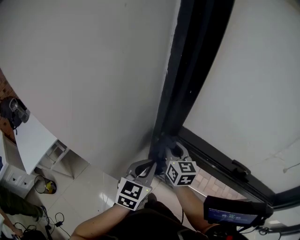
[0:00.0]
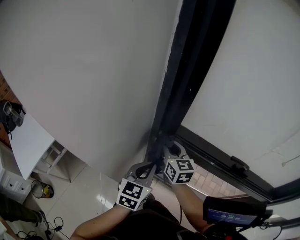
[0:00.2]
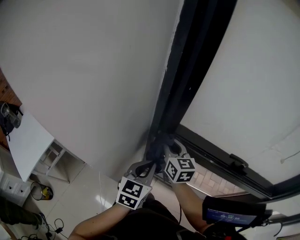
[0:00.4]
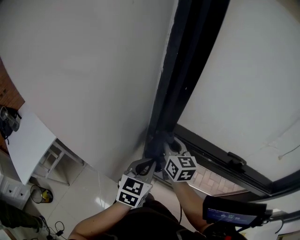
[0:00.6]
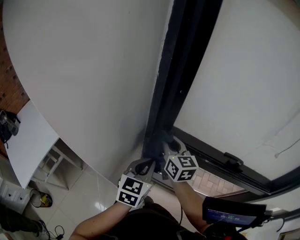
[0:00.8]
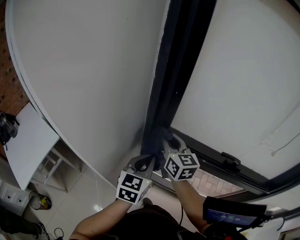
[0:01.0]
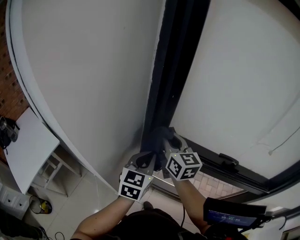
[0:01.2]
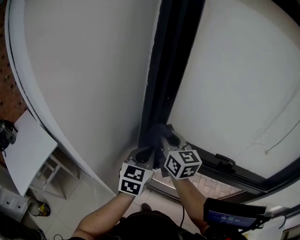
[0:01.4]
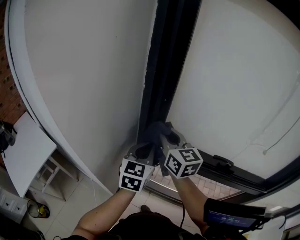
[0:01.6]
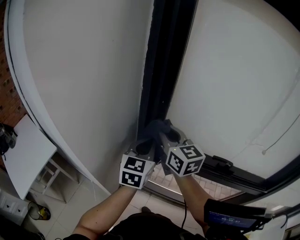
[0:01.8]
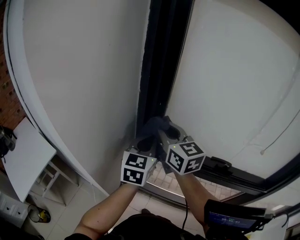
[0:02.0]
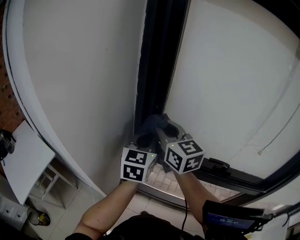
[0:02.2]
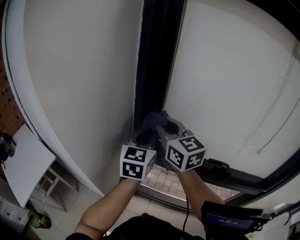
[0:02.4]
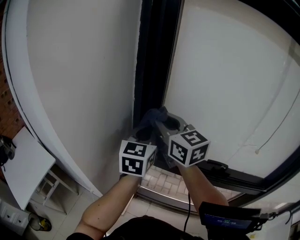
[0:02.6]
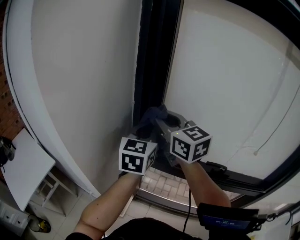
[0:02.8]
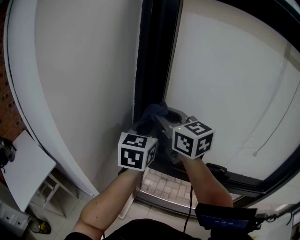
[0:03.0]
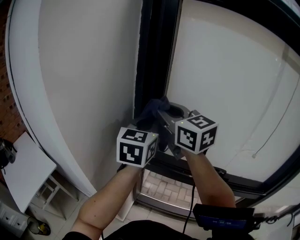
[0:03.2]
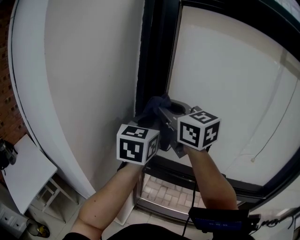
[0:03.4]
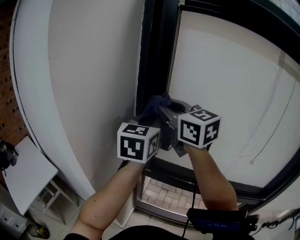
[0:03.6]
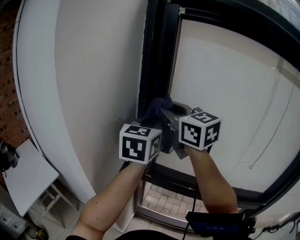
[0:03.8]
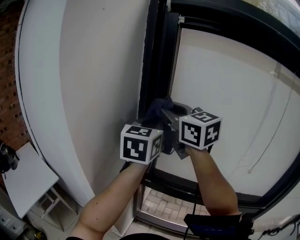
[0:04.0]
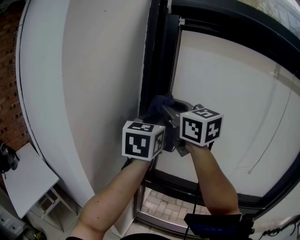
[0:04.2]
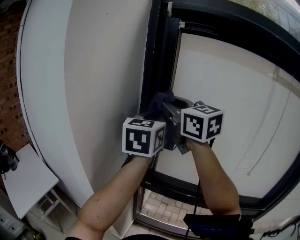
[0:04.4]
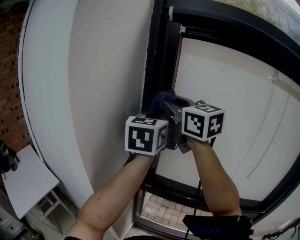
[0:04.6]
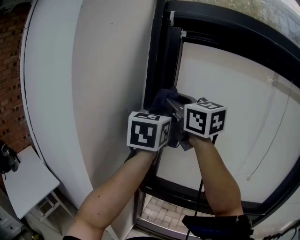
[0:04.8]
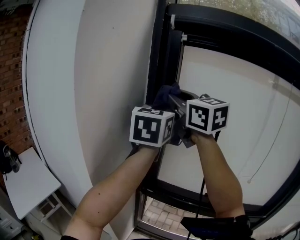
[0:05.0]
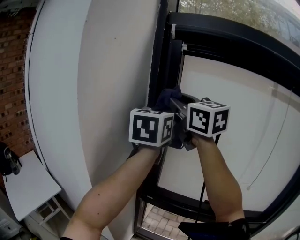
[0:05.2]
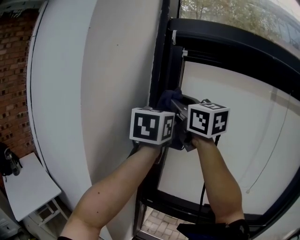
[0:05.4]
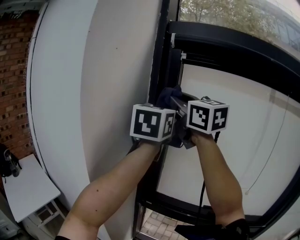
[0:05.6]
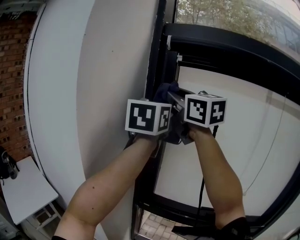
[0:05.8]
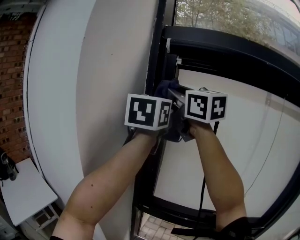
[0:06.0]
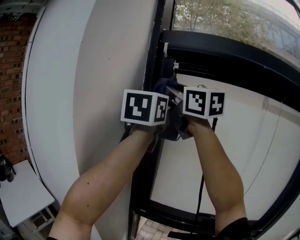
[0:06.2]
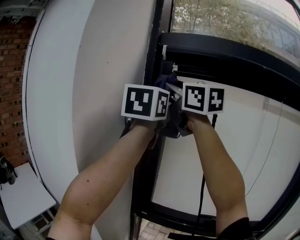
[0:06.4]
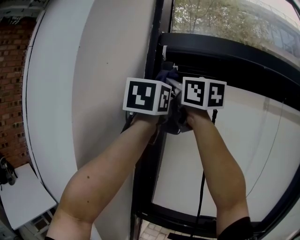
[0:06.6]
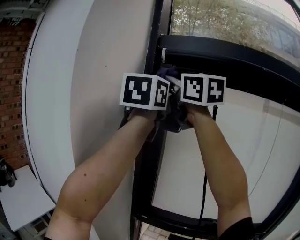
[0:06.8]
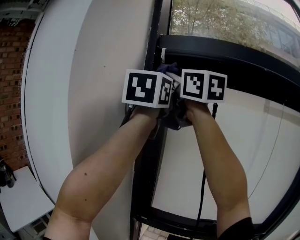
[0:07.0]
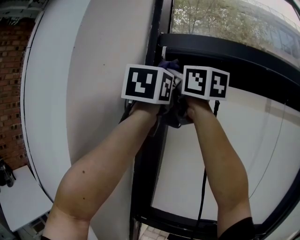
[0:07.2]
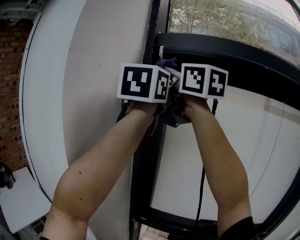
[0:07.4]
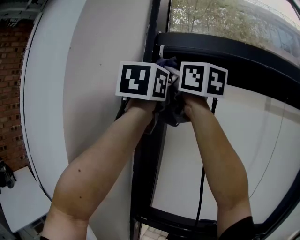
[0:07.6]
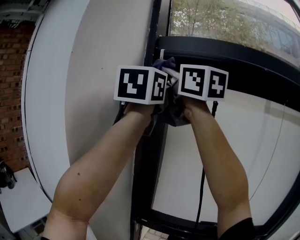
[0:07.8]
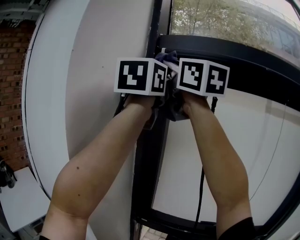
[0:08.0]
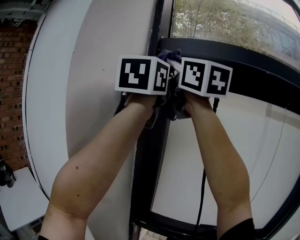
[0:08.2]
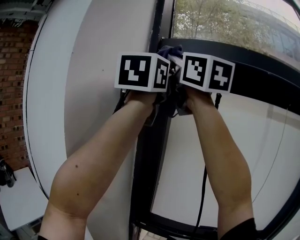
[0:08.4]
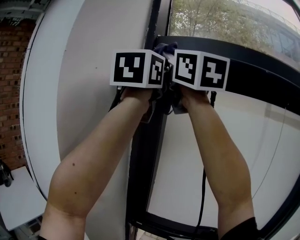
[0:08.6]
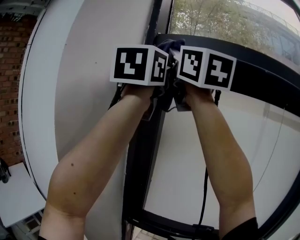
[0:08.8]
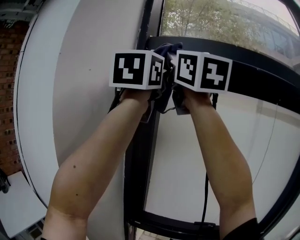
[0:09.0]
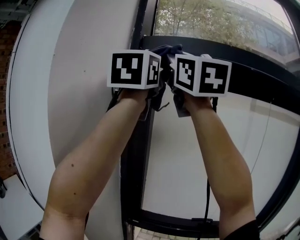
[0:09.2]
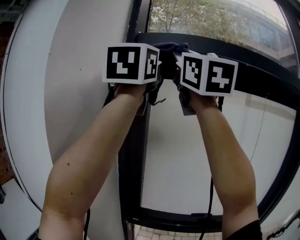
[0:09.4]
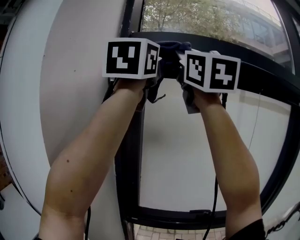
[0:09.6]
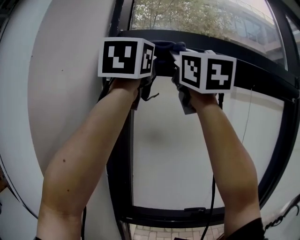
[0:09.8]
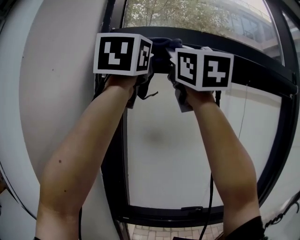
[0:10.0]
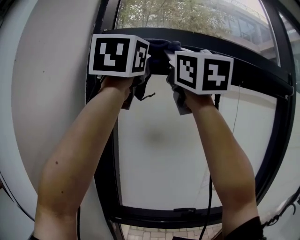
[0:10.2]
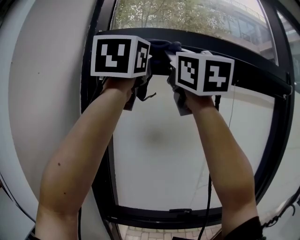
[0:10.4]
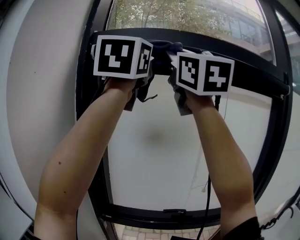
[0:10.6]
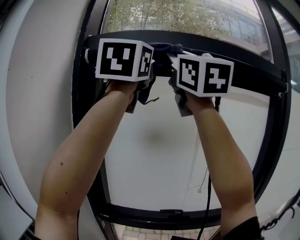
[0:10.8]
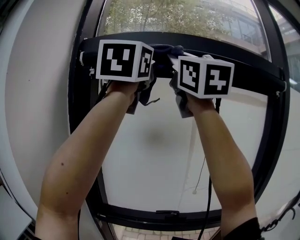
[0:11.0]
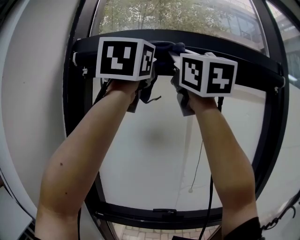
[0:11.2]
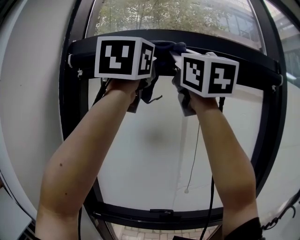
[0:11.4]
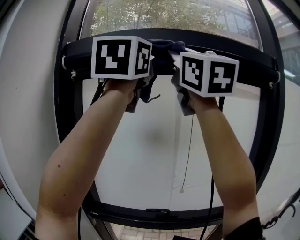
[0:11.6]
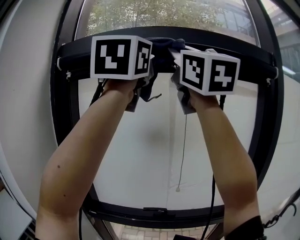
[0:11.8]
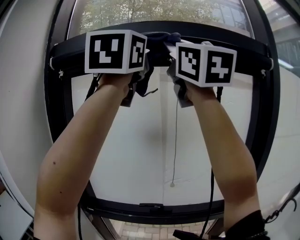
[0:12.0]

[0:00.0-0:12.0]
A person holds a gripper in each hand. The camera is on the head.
0:00.0 to 0:01.6: The right gripper travels upward by about 15 cm; the left gripper travels upward and forward by some 10 cm.
0:01.6 to 0:03.0: Both grippers travel together upward, some 15 cm.
0:03.0 to 0:04.4: Both grippers travel together upward, some 15 cm.
0:04.4 to 0:06.0: Both grippers move upward, some 15 cm.
0:06.0 to 0:07.6: Both grippers travel together upward, about 10 cm.
0:07.6 to 0:09.0: Both grippers travel together upward, approximately 5 cm. The right gripper swivels about 20 degrees.
0:09.0 to 0:10.4: Both grippers move to the right, about 15 cm.
0:10.4 to 0:12.0: Both grippers travel together to the right, some 20 cm.

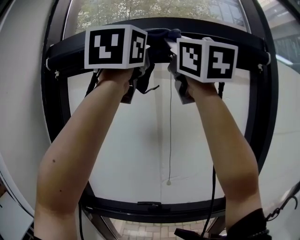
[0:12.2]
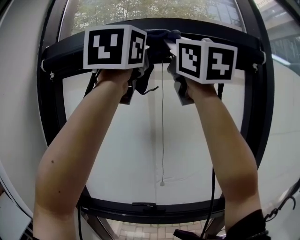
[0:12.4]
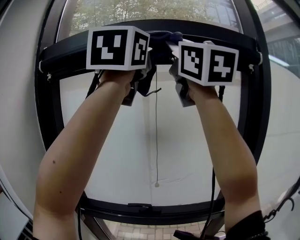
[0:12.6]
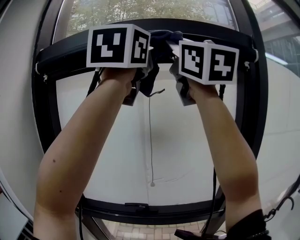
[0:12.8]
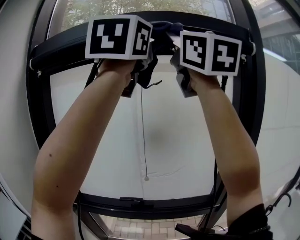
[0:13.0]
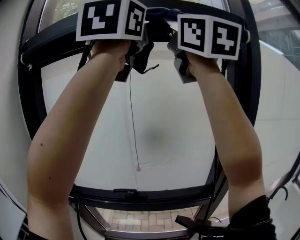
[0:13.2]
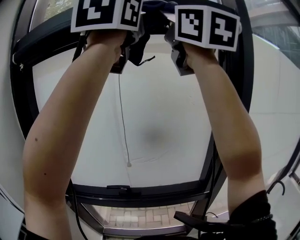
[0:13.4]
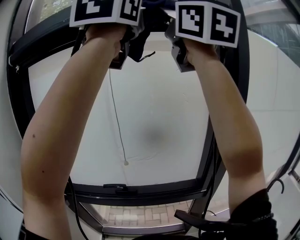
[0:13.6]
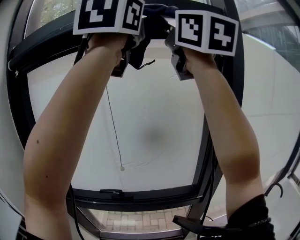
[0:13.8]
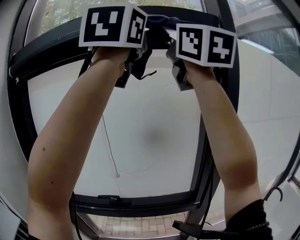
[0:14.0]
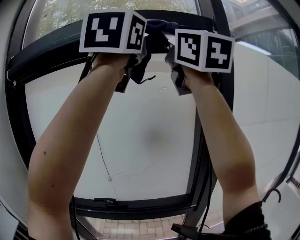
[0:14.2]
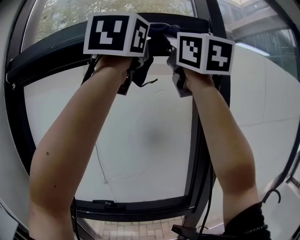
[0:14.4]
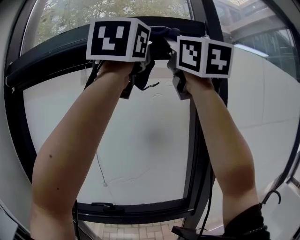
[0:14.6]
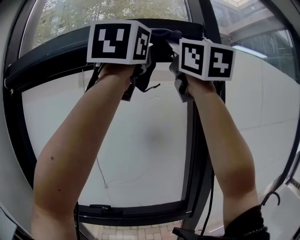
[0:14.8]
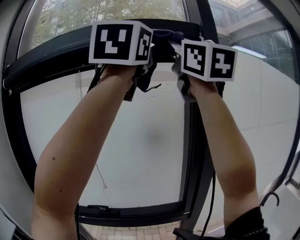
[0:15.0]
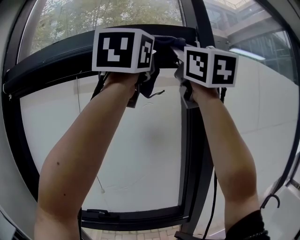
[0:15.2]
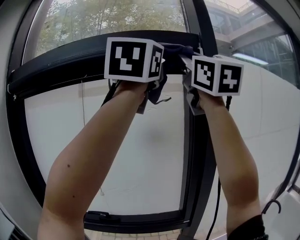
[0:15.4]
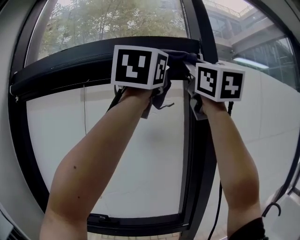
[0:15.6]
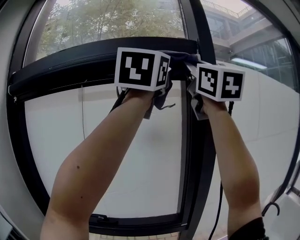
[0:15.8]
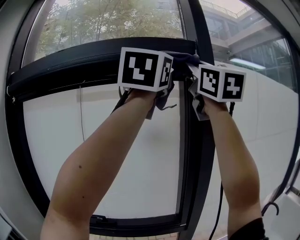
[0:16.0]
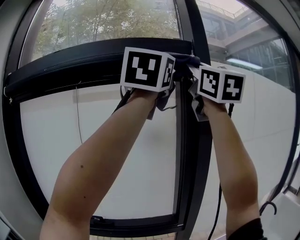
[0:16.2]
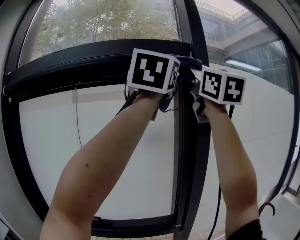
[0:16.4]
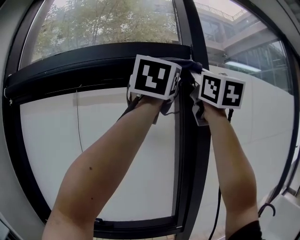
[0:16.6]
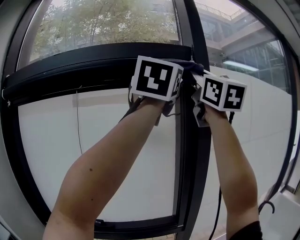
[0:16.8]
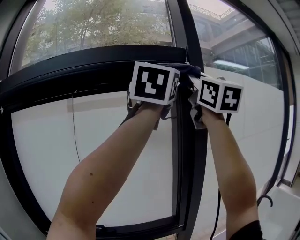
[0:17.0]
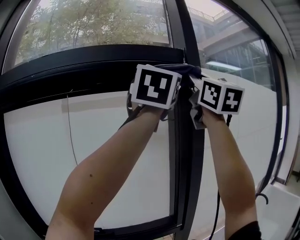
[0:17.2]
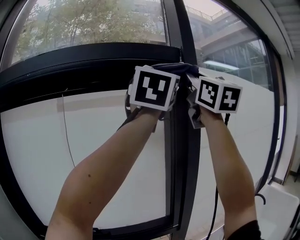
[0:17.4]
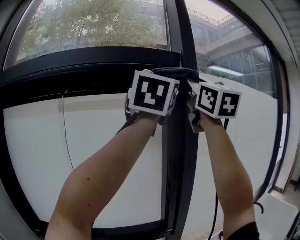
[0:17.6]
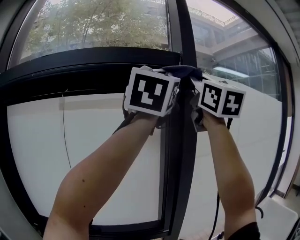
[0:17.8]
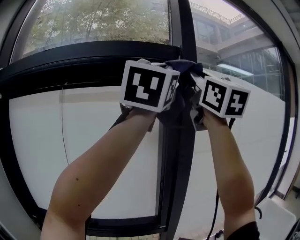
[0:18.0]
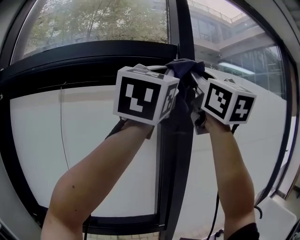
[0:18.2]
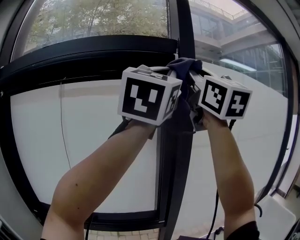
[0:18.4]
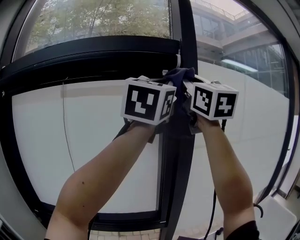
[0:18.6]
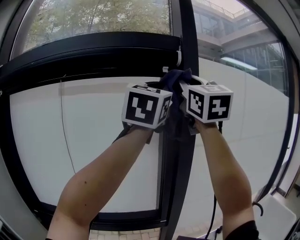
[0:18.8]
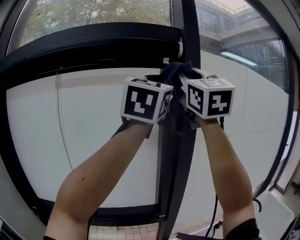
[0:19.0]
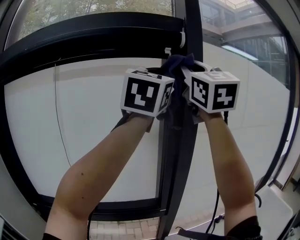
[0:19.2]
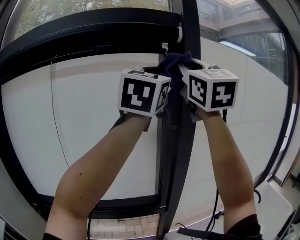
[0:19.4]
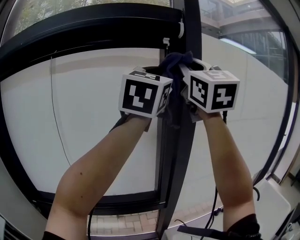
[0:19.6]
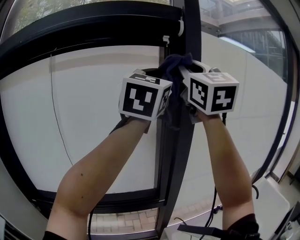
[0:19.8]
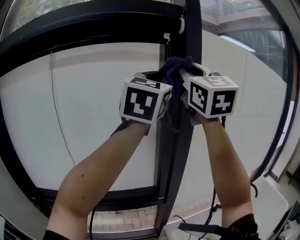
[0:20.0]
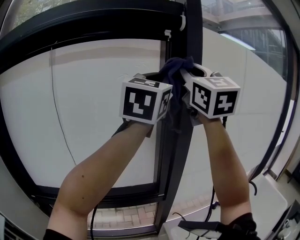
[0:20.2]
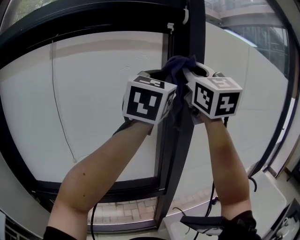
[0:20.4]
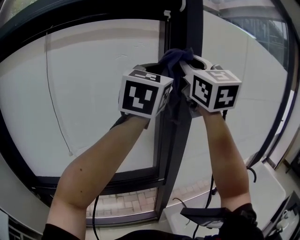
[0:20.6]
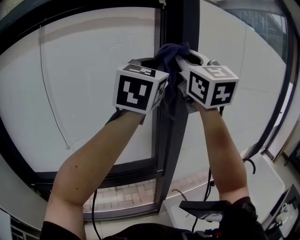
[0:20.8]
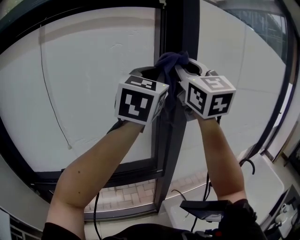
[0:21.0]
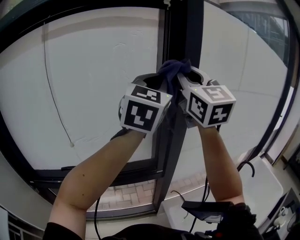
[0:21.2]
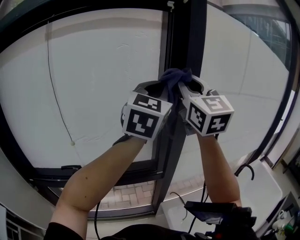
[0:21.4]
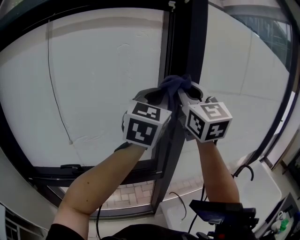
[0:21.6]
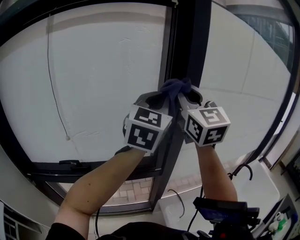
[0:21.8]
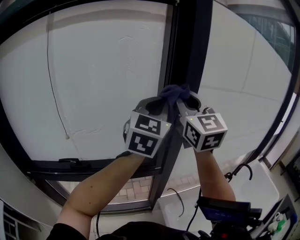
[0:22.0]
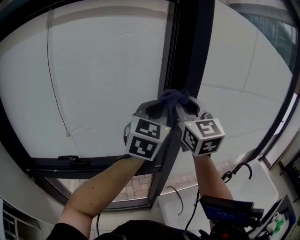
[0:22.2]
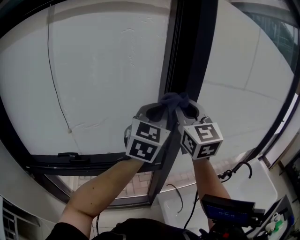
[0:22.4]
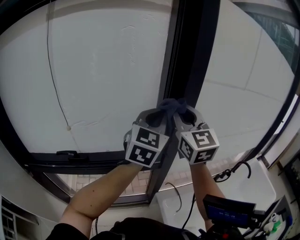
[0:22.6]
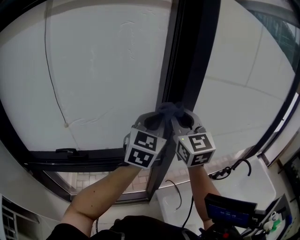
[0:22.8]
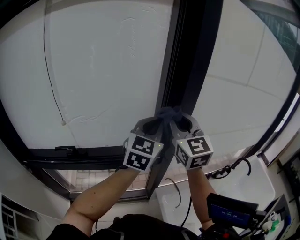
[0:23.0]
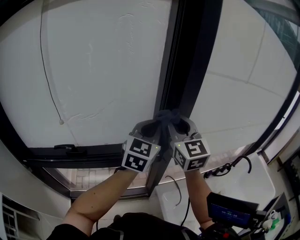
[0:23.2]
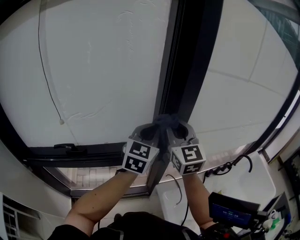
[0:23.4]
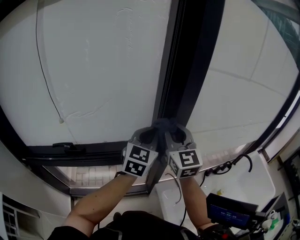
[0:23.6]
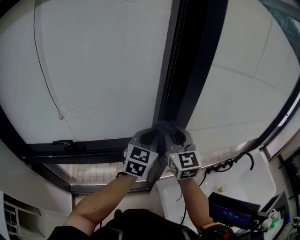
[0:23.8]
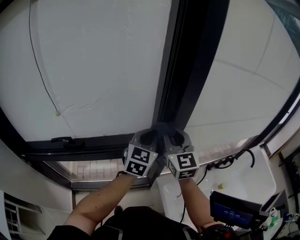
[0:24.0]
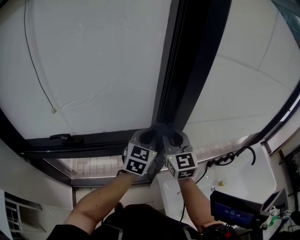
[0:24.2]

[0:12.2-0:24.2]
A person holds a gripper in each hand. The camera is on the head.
0:12.2 to 0:13.8: The left gripper goes left and right, roughly 15 cm each way, reversing 2 times. The right gripper shifts approximately 10 cm to the right.
0:13.8 to 0:15.2: Both grippers move to the right, about 15 cm.
0:15.2 to 0:16.6: The two grippers go roughly 10 cm to the right.
0:16.6 to 0:18.2: The right gripper shifts by roughly 5 cm, while the left gripper ends up roughly 5 cm from where it was.
0:18.2 to 0:19.8: The grippers both shift downward and forward by about 15 cm.
0:19.8 to 0:21.2: Both grippers travel together downward, about 15 cm.
0:21.2 to 0:22.6: Both grippers travel together downward, about 15 cm.
0:22.6 to 0:24.2: Both grippers travel together downward, about 20 cm.
